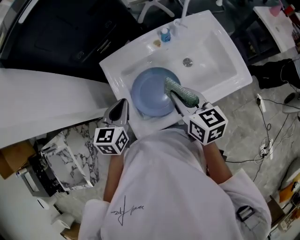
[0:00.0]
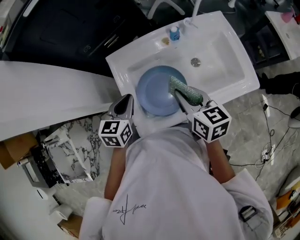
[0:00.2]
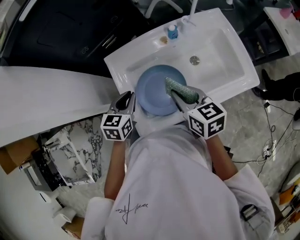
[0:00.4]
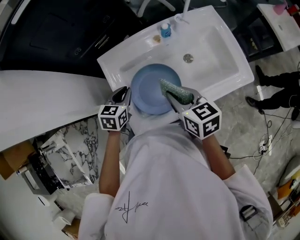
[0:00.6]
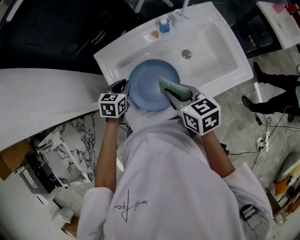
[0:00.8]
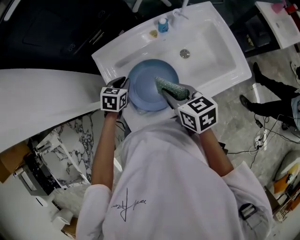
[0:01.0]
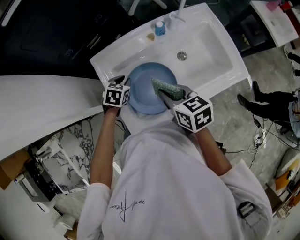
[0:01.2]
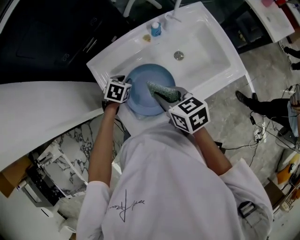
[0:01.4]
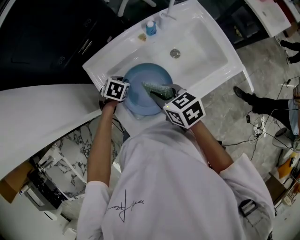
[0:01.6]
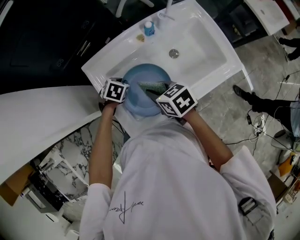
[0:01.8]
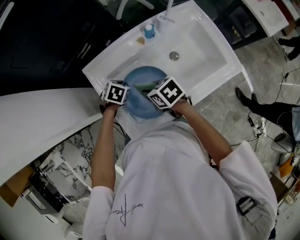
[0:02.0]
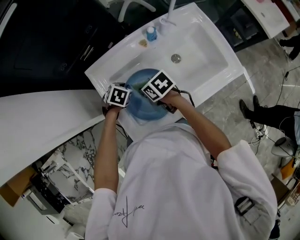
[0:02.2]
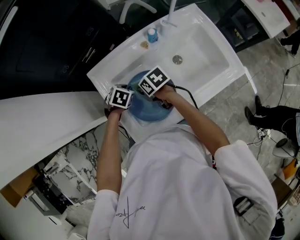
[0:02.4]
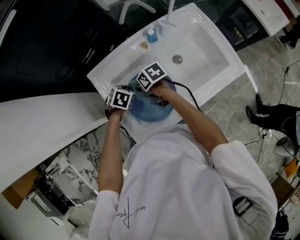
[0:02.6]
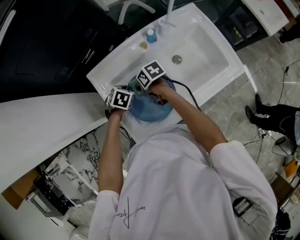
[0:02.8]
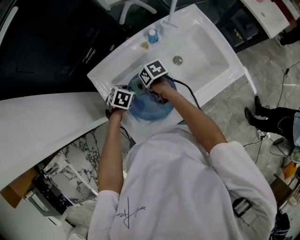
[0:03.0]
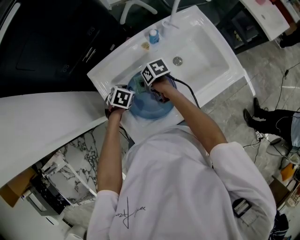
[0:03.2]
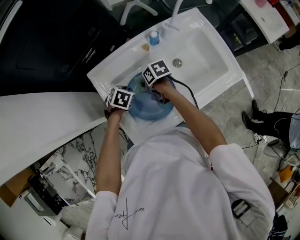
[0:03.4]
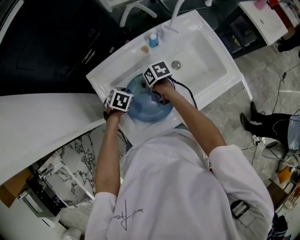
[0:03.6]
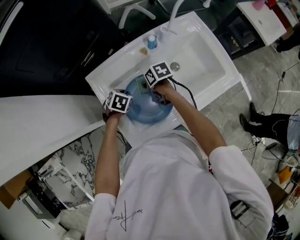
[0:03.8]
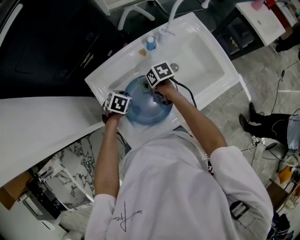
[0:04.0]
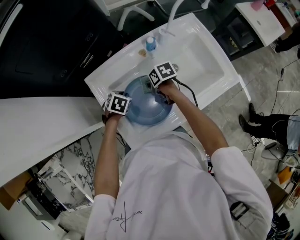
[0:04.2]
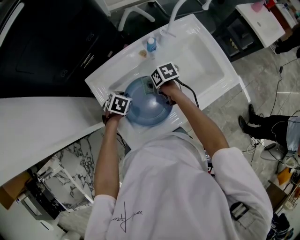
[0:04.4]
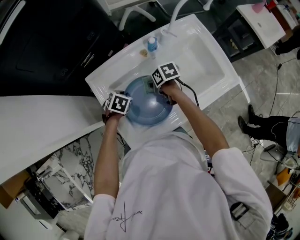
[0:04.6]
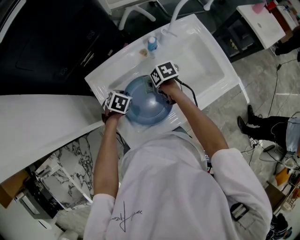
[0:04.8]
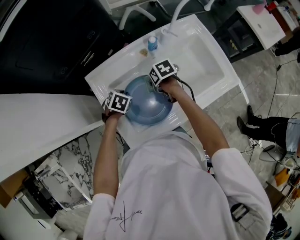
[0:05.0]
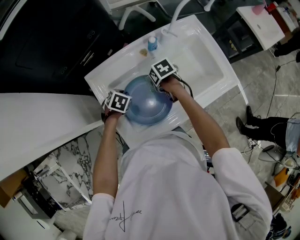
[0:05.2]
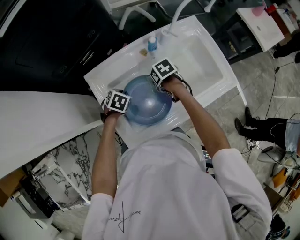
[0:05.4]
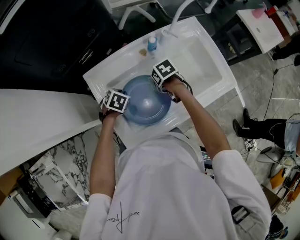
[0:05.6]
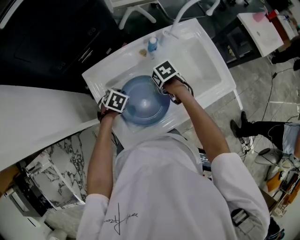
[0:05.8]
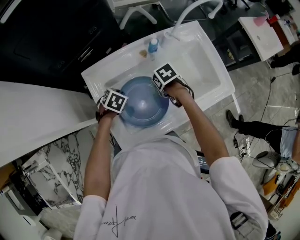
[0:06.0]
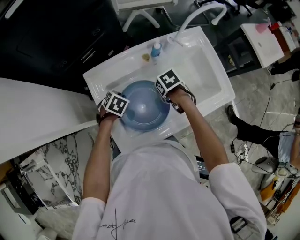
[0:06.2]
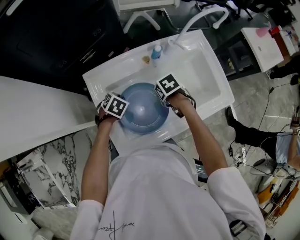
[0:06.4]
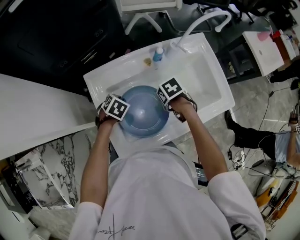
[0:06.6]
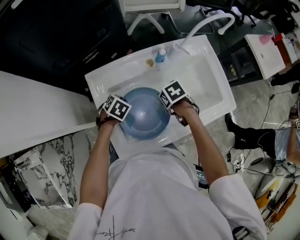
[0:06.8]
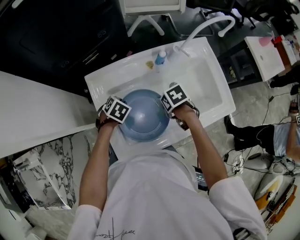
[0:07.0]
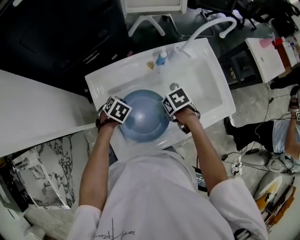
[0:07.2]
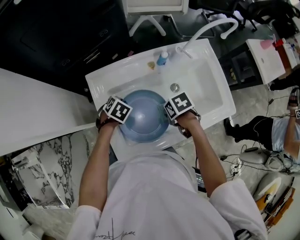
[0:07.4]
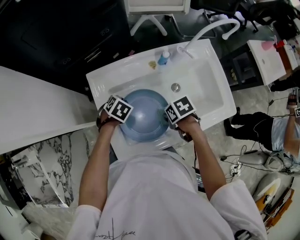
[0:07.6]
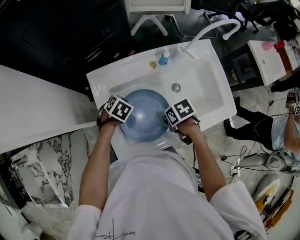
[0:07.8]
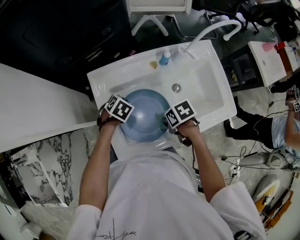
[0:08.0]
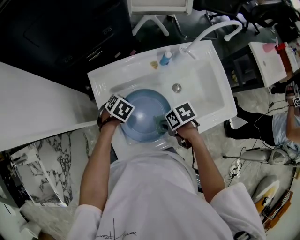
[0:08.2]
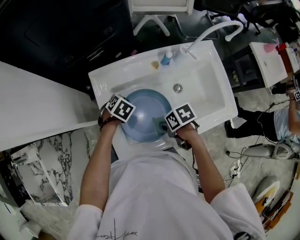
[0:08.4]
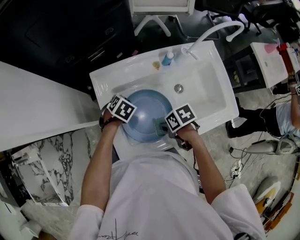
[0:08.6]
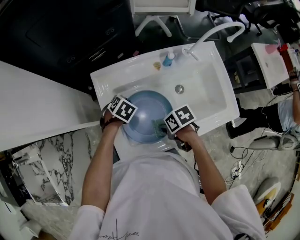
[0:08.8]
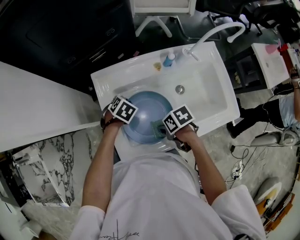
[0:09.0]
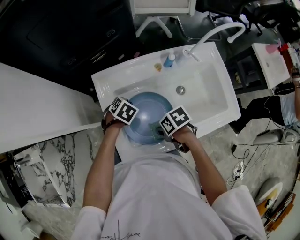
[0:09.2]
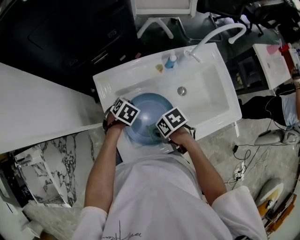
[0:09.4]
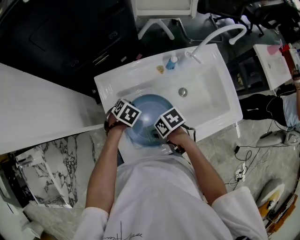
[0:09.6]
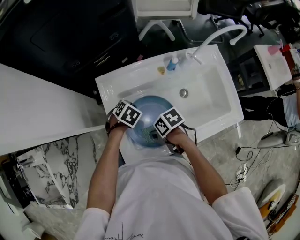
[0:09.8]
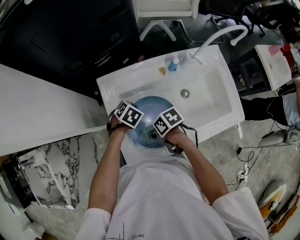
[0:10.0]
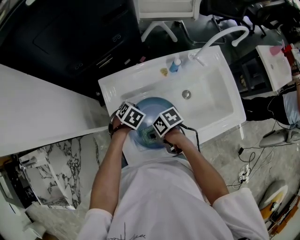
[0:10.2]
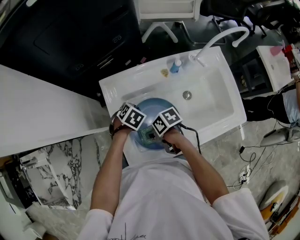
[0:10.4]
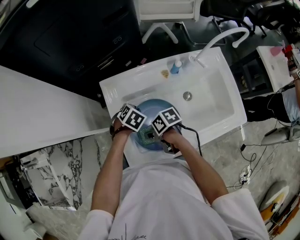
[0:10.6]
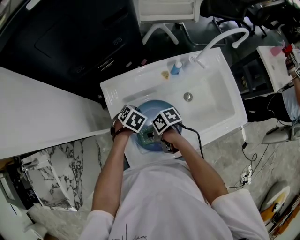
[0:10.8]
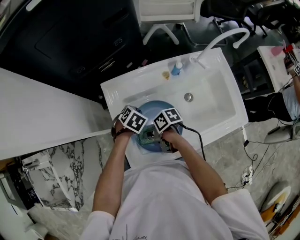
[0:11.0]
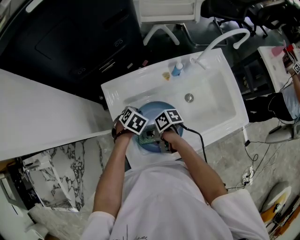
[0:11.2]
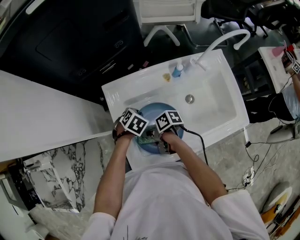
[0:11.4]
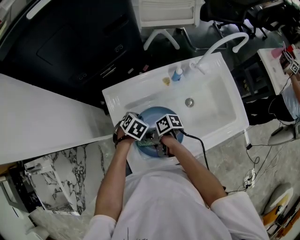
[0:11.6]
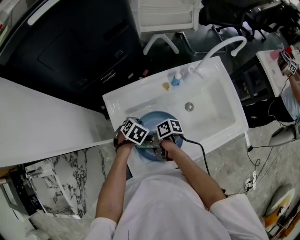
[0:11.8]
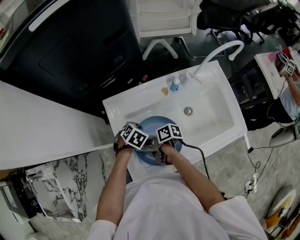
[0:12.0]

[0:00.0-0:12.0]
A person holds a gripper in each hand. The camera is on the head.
0:00.0 to 0:01.6: The left gripper heads downward and forward, covering roughly 25 cm, and points its fingers roughly 40 degrees further downward; the right gripper is displaced downward and to the left by about 10 cm, and changes its angle by roughly 20 degrees.
0:01.6 to 0:03.0: The right gripper heads downward and forward, covering approximately 20 cm, and rotates some 30 degrees.
0:03.0 to 0:04.4: The right gripper shifts about 10 cm to the right.
0:04.4 to 0:06.0: The right gripper ends up roughly 5 cm from where it was, and swivels about 30 degrees.
0:06.0 to 0:07.6: The right gripper shifts by some 10 cm.
0:07.6 to 0:09.0: The right gripper shifts by approximately 5 cm.
0:09.0 to 0:10.4: The right gripper ends up about 10 cm from where it was.
0:10.4 to 0:12.0: The right gripper ends up approximately 5 cm from where it was, and swivels approximately 30 degrees.

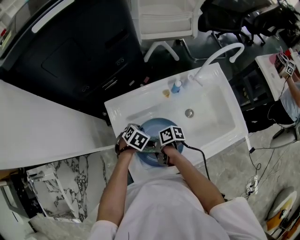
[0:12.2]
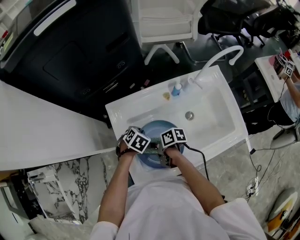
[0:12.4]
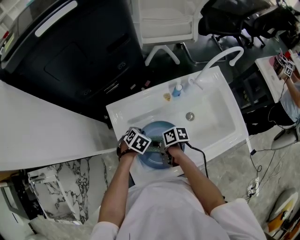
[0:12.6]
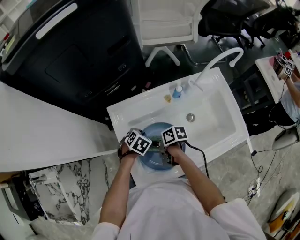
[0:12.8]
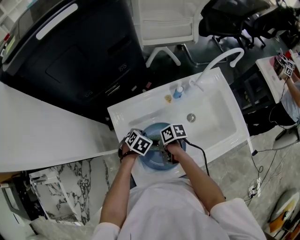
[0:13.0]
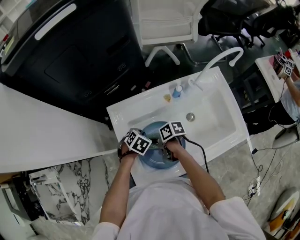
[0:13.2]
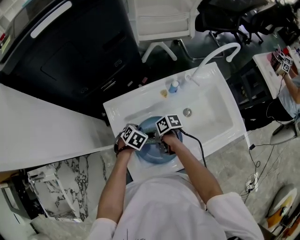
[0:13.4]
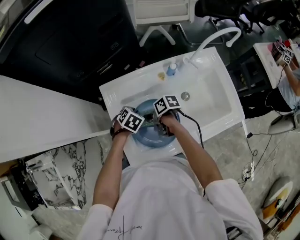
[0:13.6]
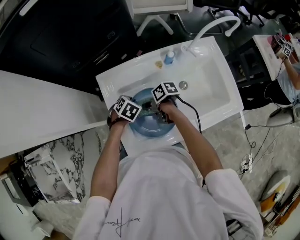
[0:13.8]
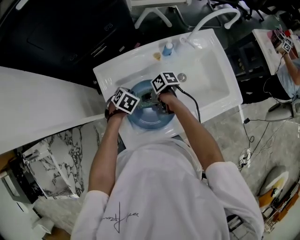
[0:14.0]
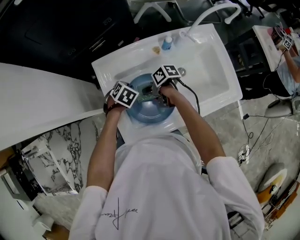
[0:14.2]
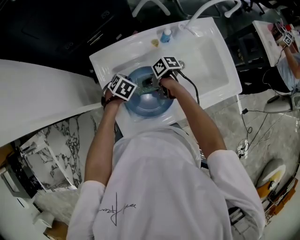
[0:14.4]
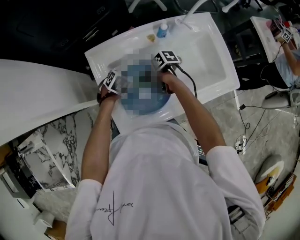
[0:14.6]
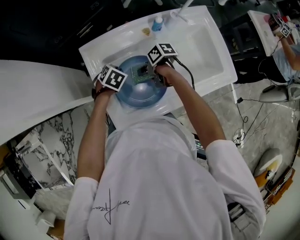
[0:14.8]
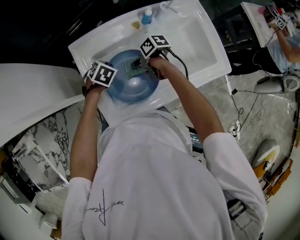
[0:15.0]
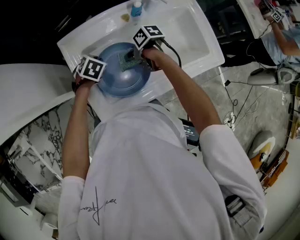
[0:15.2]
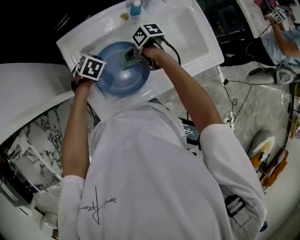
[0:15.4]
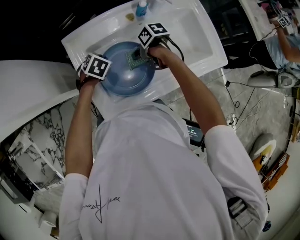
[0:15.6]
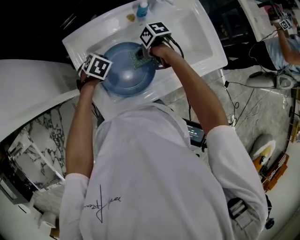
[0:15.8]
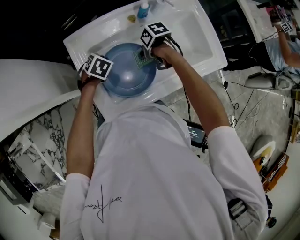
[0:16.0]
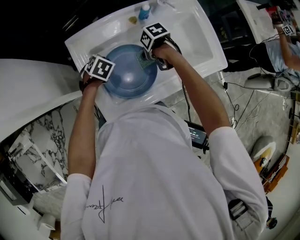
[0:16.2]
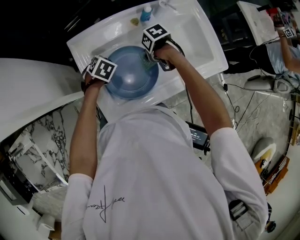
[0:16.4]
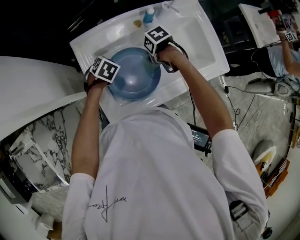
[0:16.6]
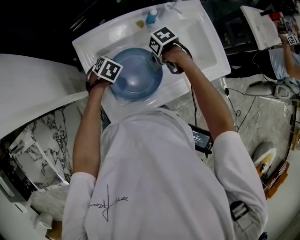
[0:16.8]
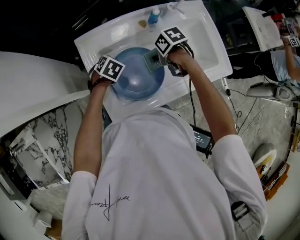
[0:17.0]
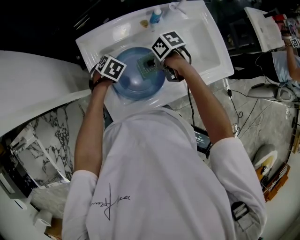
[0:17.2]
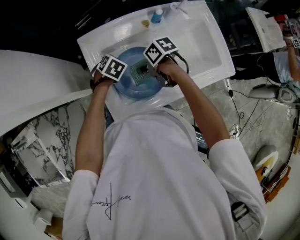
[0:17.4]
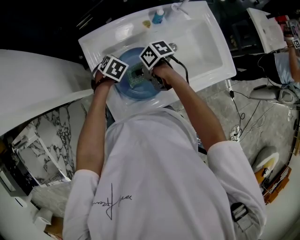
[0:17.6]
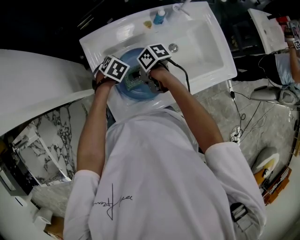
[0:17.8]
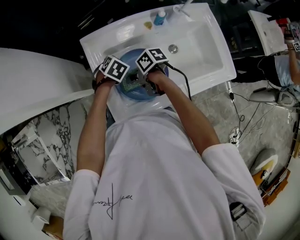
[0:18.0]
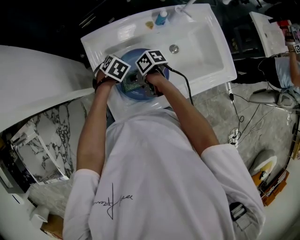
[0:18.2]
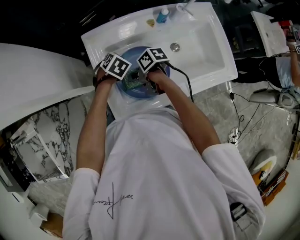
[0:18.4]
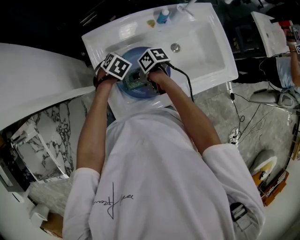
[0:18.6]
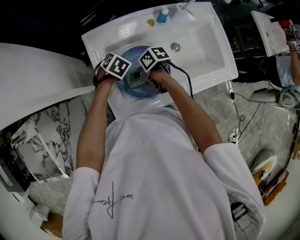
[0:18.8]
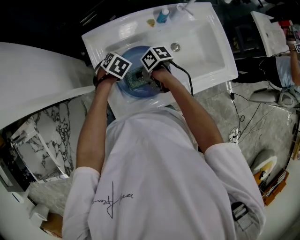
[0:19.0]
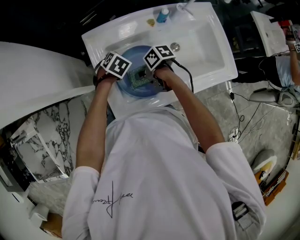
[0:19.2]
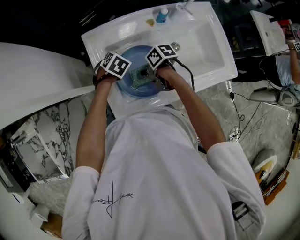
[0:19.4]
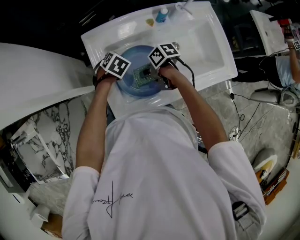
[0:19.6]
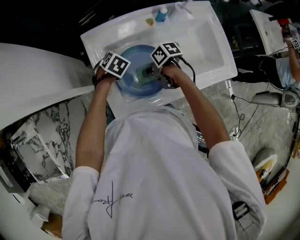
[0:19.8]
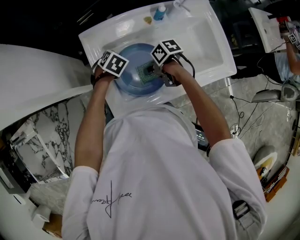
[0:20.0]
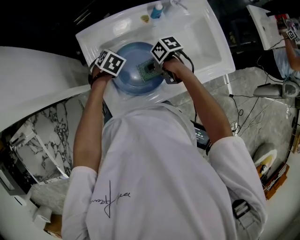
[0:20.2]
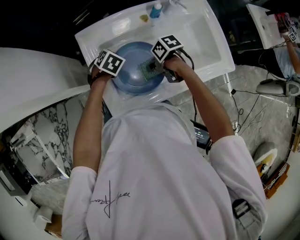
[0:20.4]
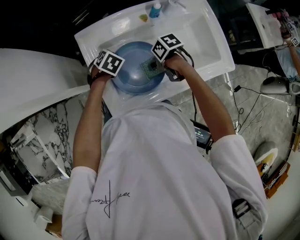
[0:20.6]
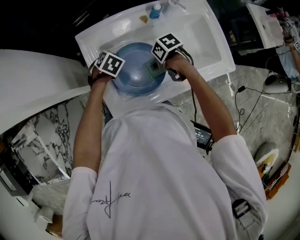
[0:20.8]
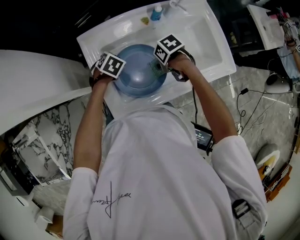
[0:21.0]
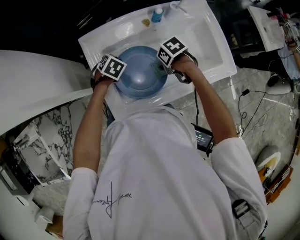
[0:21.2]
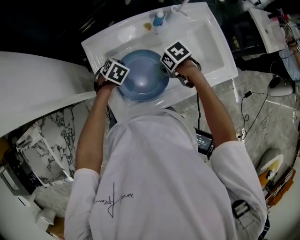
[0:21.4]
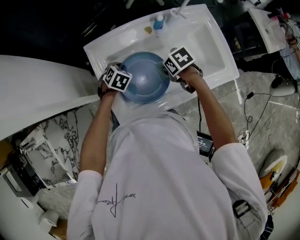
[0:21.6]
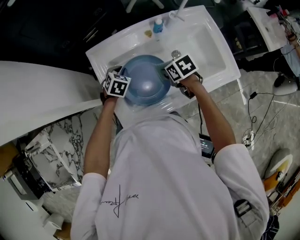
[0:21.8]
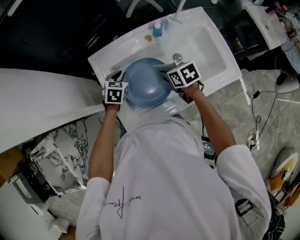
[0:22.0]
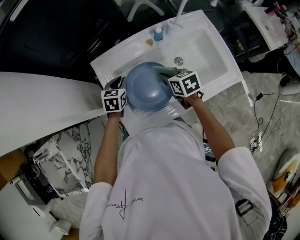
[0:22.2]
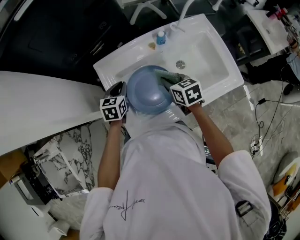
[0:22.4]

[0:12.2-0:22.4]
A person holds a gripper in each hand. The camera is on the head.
0:12.2 to 0:13.6: The right gripper changes place by about 5 cm.
0:13.6 to 0:15.2: The right gripper shifts by roughly 5 cm.
0:15.2 to 0:16.6: The right gripper changes place by about 5 cm, and swivels roughly 30 degrees.
0:16.6 to 0:18.0: The right gripper shifts by about 15 cm, and tilts its fingers some 30 degrees upward.
0:18.0 to 0:19.4: The grippers move only a little.
0:19.4 to 0:21.0: The right gripper shifts by approximately 10 cm, and turns by some 30 degrees.
0:21.0 to 0:22.4: Both grippers move upward, about 10 cm. The left gripper rotates roughly 40 degrees; the right gripper rotates roughly 50 degrees.

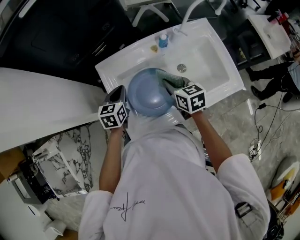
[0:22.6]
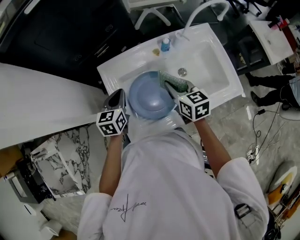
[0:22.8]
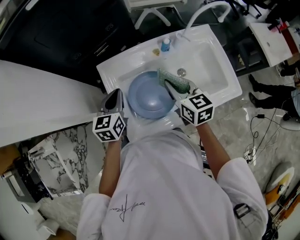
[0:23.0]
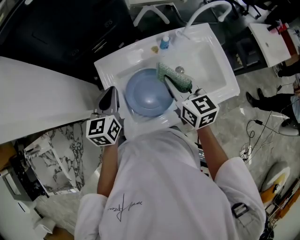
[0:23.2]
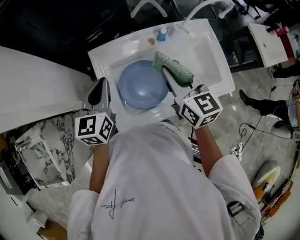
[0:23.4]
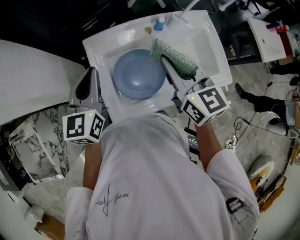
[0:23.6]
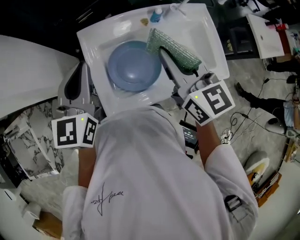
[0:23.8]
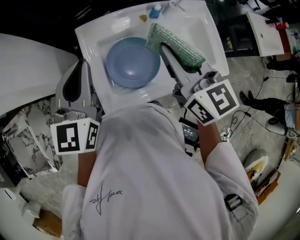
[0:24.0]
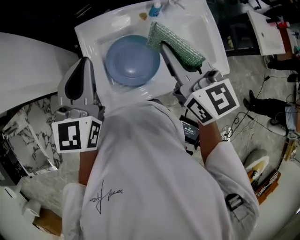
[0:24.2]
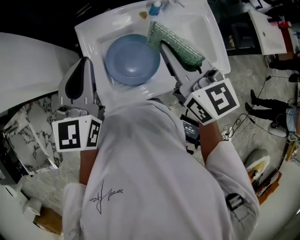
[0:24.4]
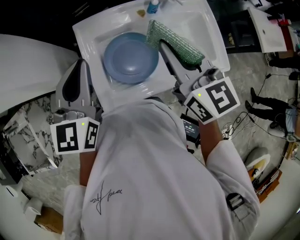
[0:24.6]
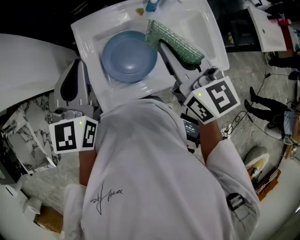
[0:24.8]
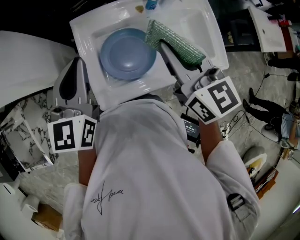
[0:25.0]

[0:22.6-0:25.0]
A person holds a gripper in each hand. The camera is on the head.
0:22.6 to 0:23.8: The grippers both shift upward by approximately 20 cm. The right gripper turns by about 30 degrees, while the left gripper turns by roughly 20 degrees.
0:23.8 to 0:25.0: The grippers make only small movements.
